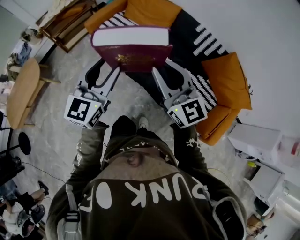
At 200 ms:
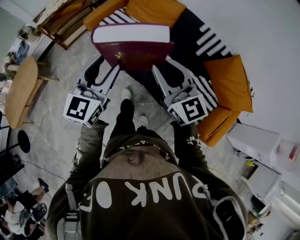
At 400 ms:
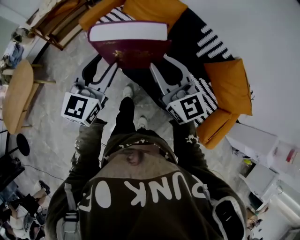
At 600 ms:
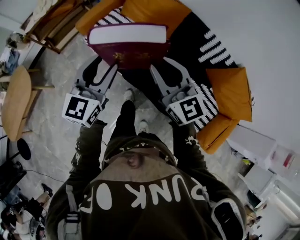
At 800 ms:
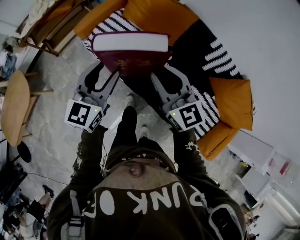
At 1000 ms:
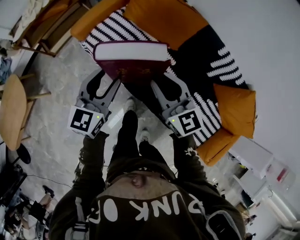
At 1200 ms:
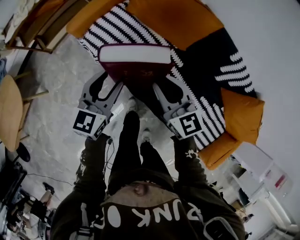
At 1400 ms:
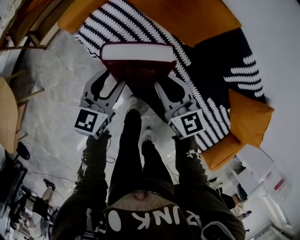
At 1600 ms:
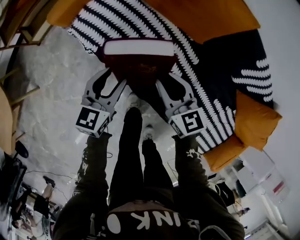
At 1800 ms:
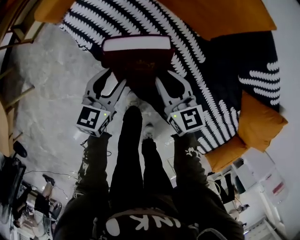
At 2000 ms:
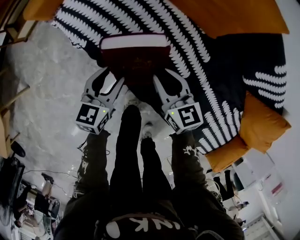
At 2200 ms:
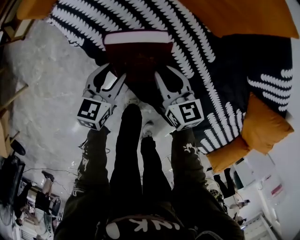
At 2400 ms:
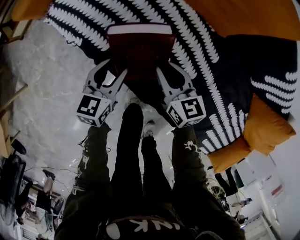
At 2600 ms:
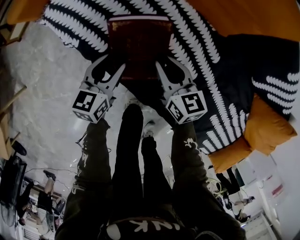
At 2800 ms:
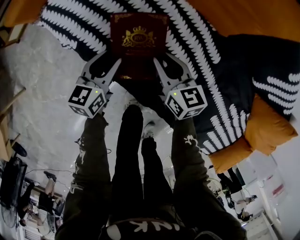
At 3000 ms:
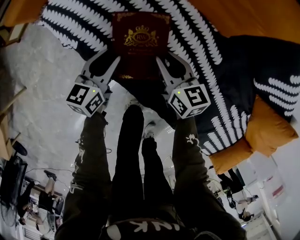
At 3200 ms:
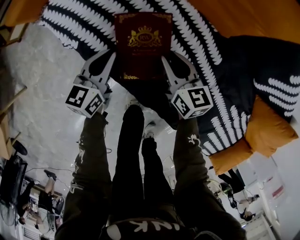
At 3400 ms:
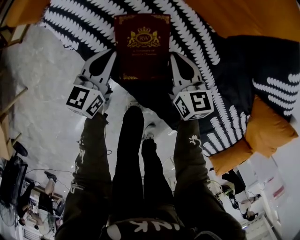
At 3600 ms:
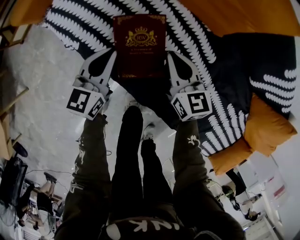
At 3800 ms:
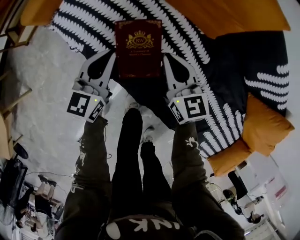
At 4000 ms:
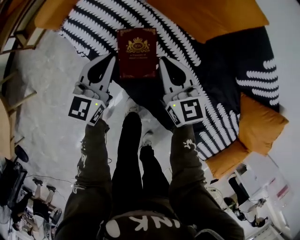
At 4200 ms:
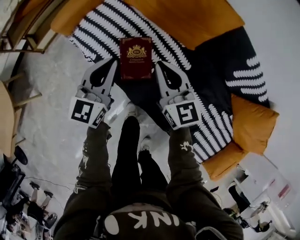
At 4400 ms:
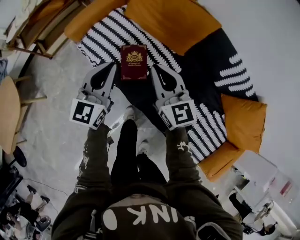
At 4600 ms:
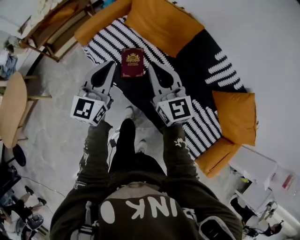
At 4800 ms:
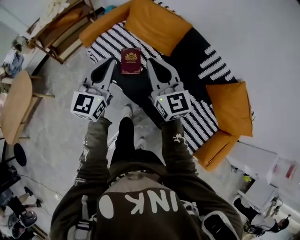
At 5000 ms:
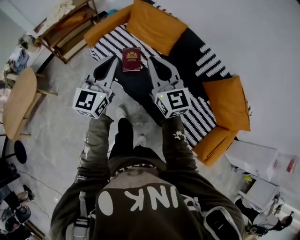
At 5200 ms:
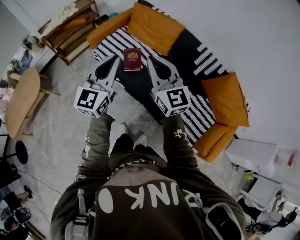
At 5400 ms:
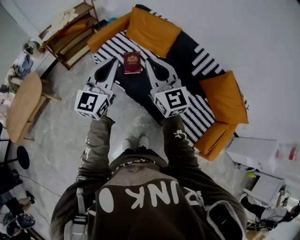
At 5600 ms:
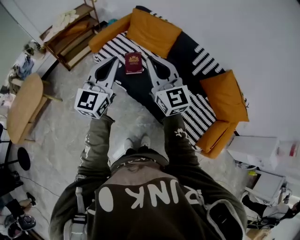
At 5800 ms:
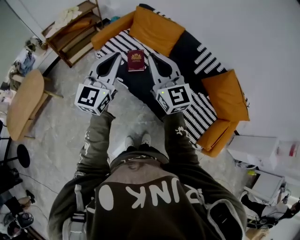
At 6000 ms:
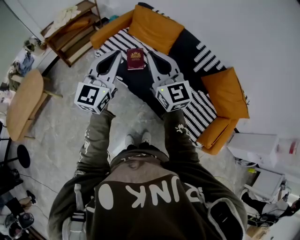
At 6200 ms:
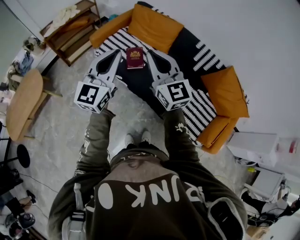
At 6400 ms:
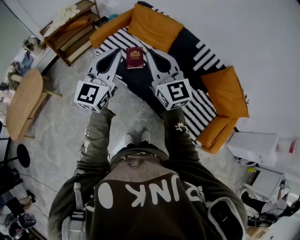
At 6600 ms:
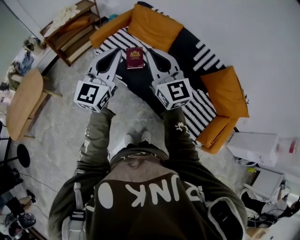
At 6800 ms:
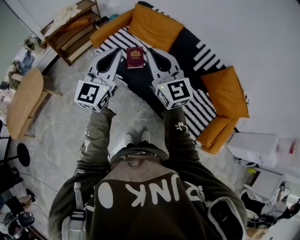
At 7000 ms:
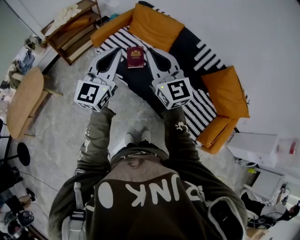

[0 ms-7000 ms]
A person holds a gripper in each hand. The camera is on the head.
0 ms to 1400 ms: The pair of grippers is taken forward, roughly 40 cm. The grippers both shift downward by about 35 cm. The right gripper turns by approximately 30 degrees; the left gripper rotates approximately 30 degrees.
1400 ms to 2800 ms: The two grippers go approximately 30 cm downward. The right gripper swivels roughly 20 degrees.
2800 ms to 4200 ms: The two grippers go roughly 30 cm upward. The left gripper swivels about 30 degrees, and closes, while the right gripper swivels about 30 degrees, and closes its fingers.
4200 ms to 5600 ms: Both grippers move upward and backward, about 60 cm. The right gripper turns by roughly 20 degrees, while the left gripper rotates roughly 20 degrees.
5600 ms to 7000 ms: The grippers move only a little.

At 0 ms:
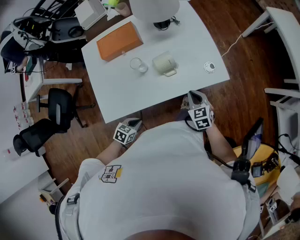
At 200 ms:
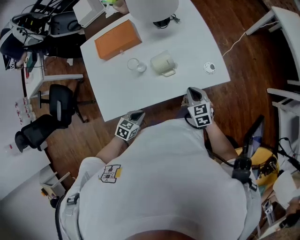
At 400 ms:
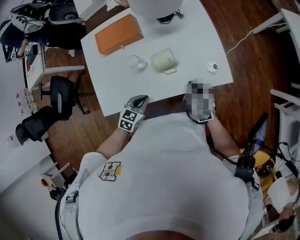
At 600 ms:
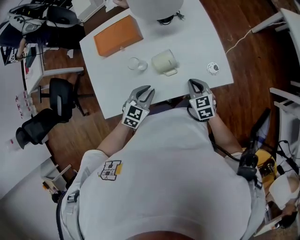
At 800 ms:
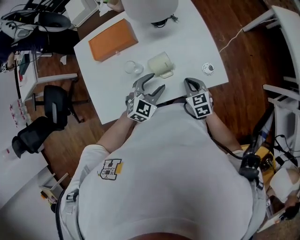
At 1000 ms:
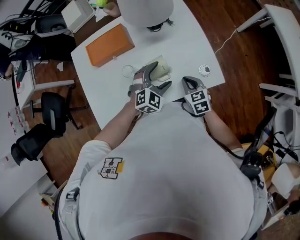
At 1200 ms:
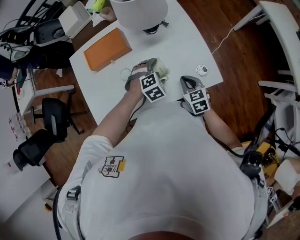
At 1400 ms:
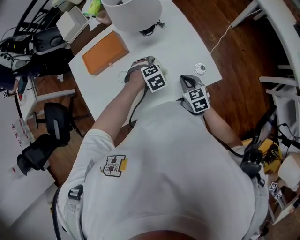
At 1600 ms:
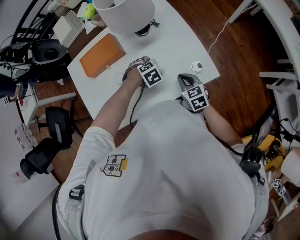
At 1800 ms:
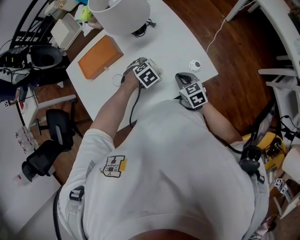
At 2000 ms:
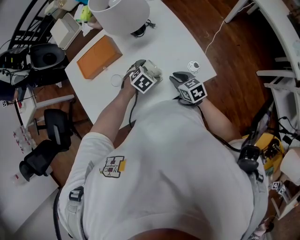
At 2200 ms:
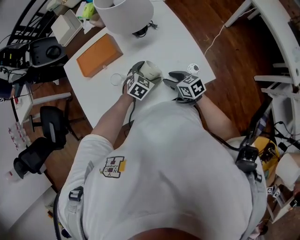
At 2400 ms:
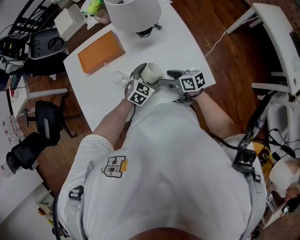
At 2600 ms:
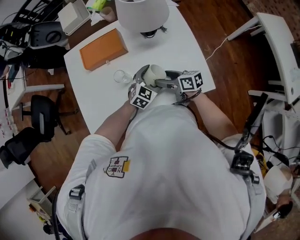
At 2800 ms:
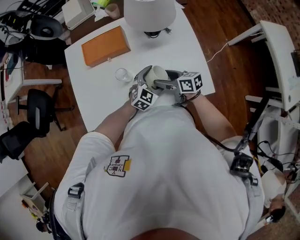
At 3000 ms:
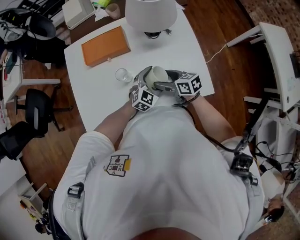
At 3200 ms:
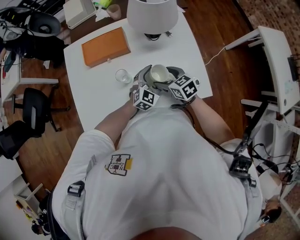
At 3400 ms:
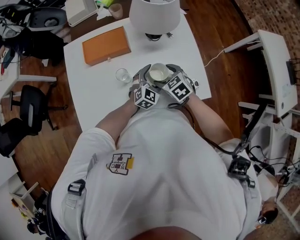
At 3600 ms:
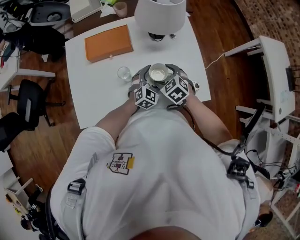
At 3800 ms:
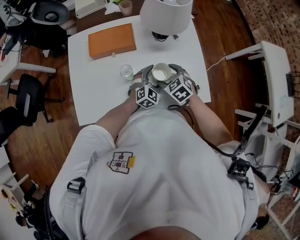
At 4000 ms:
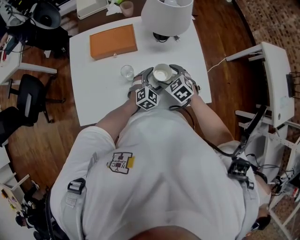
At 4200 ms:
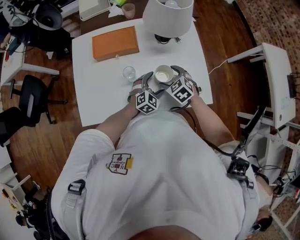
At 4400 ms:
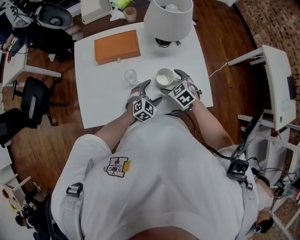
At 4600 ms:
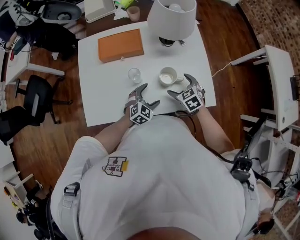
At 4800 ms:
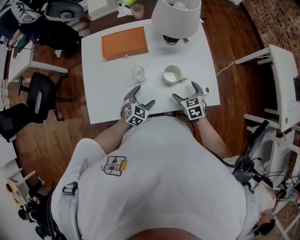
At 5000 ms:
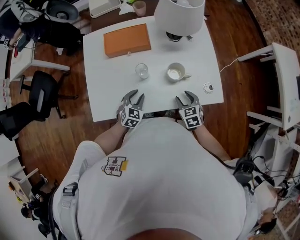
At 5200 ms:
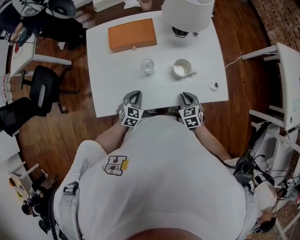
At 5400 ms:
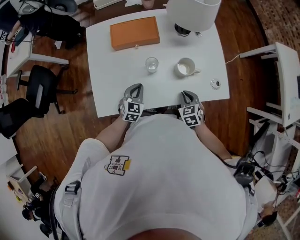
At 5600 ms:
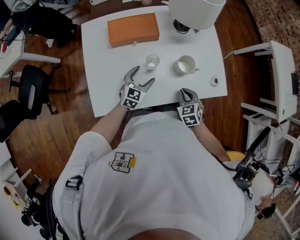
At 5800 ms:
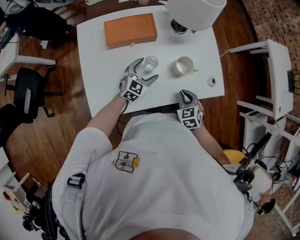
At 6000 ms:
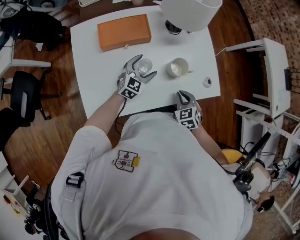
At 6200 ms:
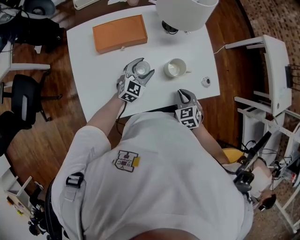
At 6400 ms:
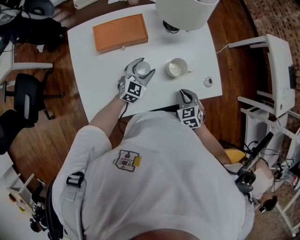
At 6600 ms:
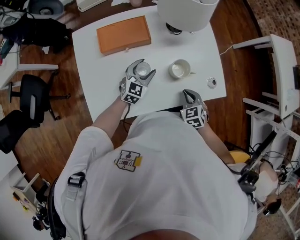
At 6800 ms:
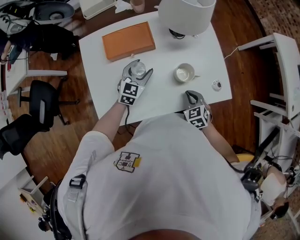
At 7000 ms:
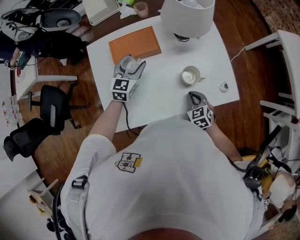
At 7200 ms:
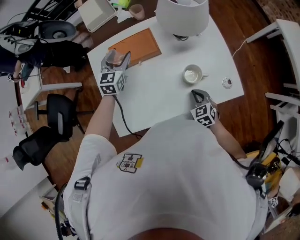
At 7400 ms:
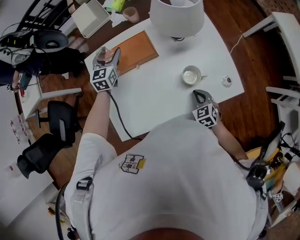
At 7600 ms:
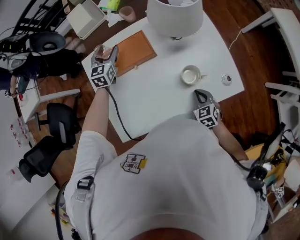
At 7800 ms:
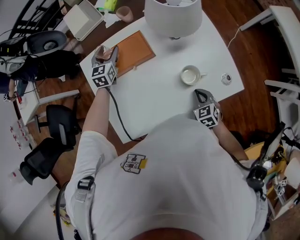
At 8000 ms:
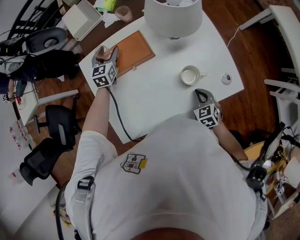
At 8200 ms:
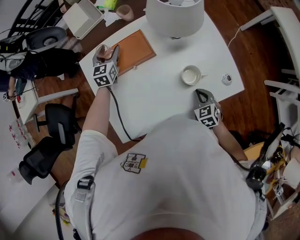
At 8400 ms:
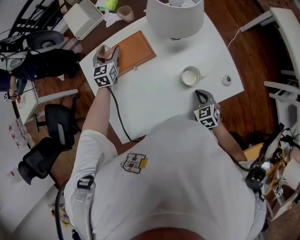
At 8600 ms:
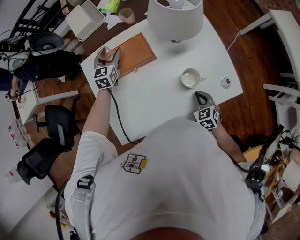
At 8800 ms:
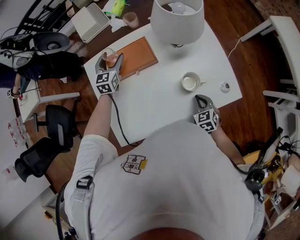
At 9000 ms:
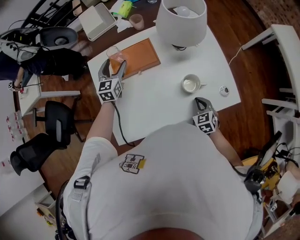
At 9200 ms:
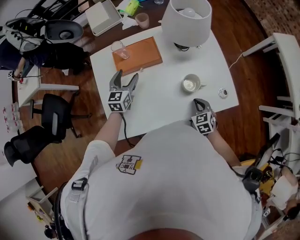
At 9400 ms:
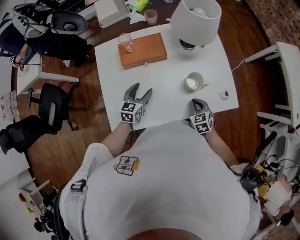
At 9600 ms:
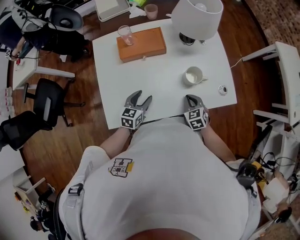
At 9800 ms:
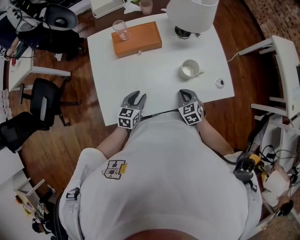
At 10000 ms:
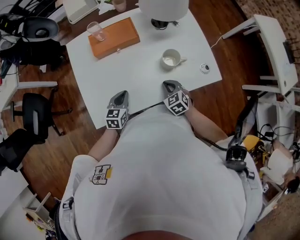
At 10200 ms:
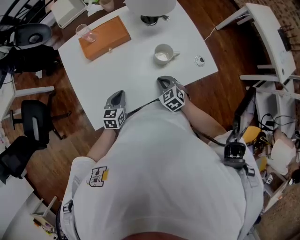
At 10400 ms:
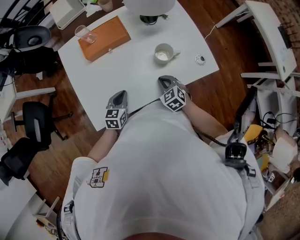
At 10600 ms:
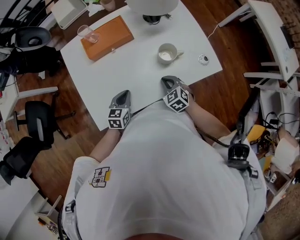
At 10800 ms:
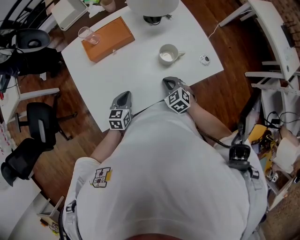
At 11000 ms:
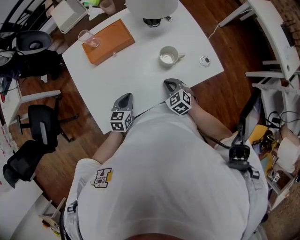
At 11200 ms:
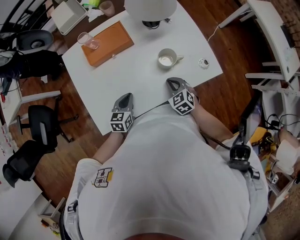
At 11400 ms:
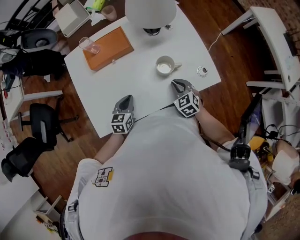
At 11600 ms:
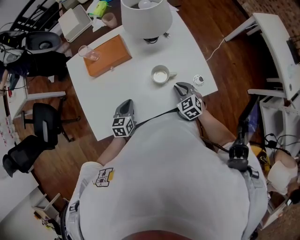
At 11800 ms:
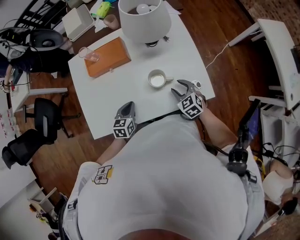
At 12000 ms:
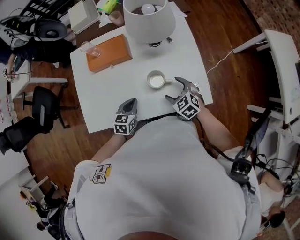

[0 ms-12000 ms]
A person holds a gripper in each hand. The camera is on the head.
0 ms to 1600 ms: The left gripper reaches some 10 cm upward, then returns, rolls clockwise, seen from behind, by about 50 degrees, and opens its fingers. The right gripper ends up roughly 15 cm from where it was.
1600 ms to 3000 ms: The left gripper shifts approximately 5 cm upward, and tilts its fingers roughly 50 degrees upward. Meanwhile the right gripper ends up approximately 10 cm from where it was, swivels about 40 degrees, and opens.
3000 ms to 4400 ms: The right gripper swivels some 50 degrees, while the left gripper goes roughly 5 cm to the left.
4400 ms to 6000 ms: The right gripper travels backward by approximately 10 cm, swivels roughly 20 degrees, and closes. Meanwhile the left gripper moves to the left and forward, some 15 cm, and closes and opens again.
6000 ms to 7600 ms: The left gripper shifts some 30 cm forward, to the left and upward, and swivels roughly 20 degrees.
7600 ms to 9000 ms: The left gripper is displaced backward by about 5 cm.
9000 ms to 10400 ms: The right gripper shifts about 5 cm to the left. Meanwhile the left gripper is displaced backward and downward by approximately 30 cm, turns by about 30 degrees, and closes.
10400 ms to 12000 ms: The right gripper goes approximately 15 cm to the right, forward and upward, and opens its fingers. The left gripper travels to the right by some 10 cm.

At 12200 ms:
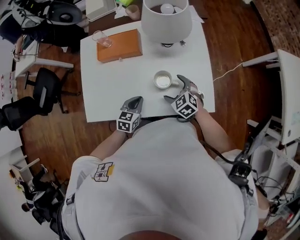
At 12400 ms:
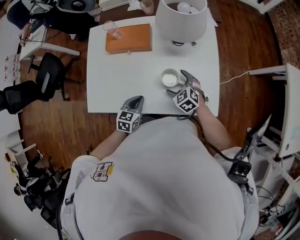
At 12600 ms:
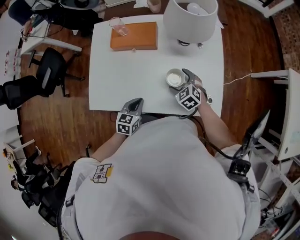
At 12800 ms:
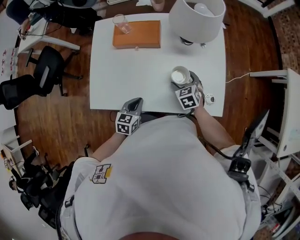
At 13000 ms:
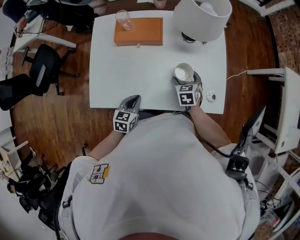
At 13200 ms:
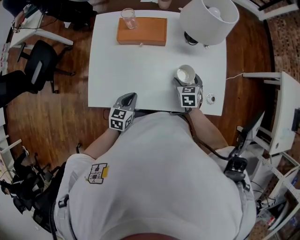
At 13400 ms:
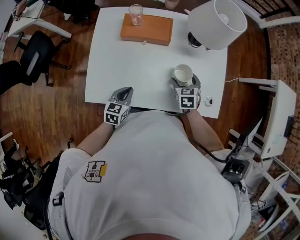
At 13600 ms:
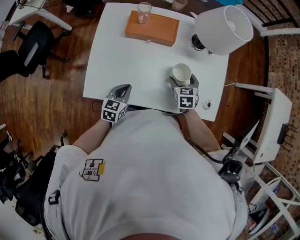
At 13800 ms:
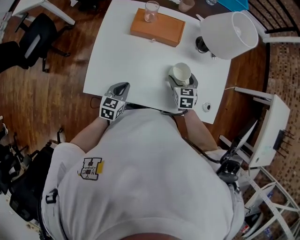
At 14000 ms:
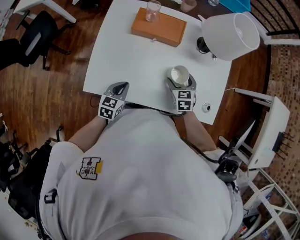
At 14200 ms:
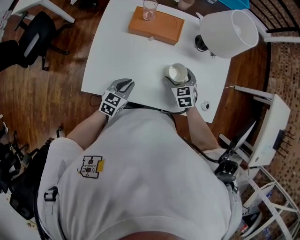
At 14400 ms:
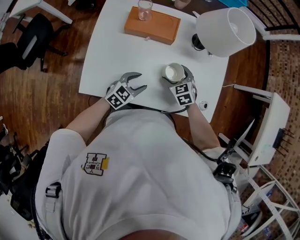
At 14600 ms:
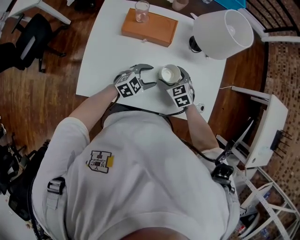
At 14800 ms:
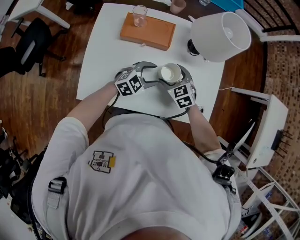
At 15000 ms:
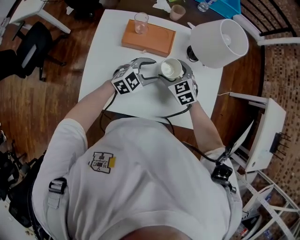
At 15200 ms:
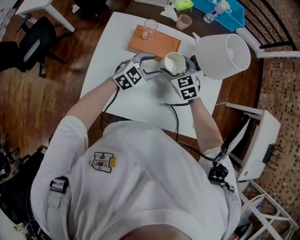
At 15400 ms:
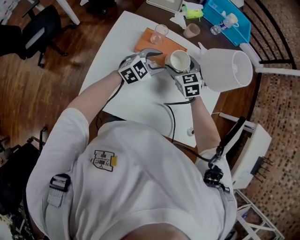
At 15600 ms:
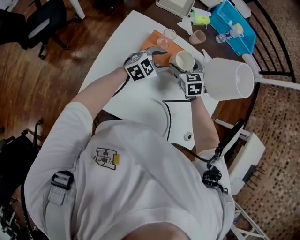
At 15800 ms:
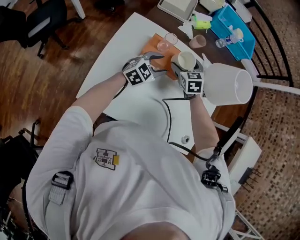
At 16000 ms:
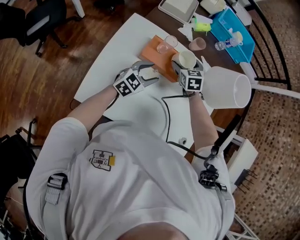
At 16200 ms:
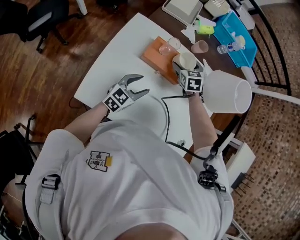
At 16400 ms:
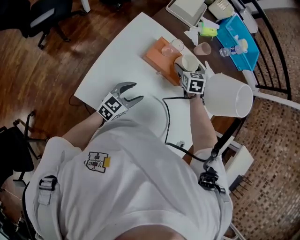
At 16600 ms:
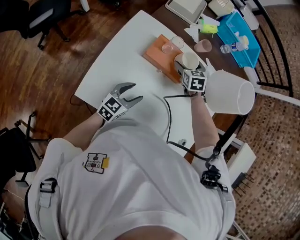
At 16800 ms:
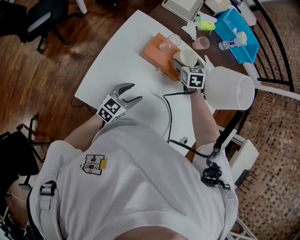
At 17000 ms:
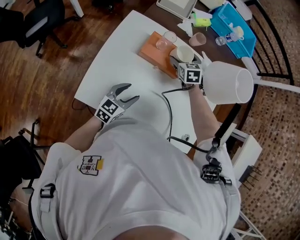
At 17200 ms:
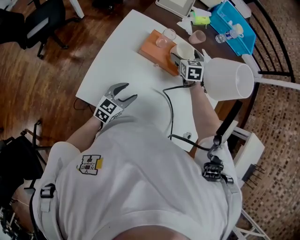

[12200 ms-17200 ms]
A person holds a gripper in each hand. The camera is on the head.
12200 ms to 13800 ms: The left gripper is displaced to the left by about 15 cm, while the right gripper shifts about 10 cm to the left and forward, and turns by some 20 degrees.
13800 ms to 15600 ms: The left gripper heads forward and upward, covering approximately 30 cm, changes its angle by approximately 40 degrees, and opens up. Meanwhile the right gripper shifts roughly 25 cm forward, to the left and upward, and rotates roughly 30 degrees.
15600 ms to 17200 ms: The left gripper is displaced backward by roughly 20 cm, and changes its angle by about 30 degrees, while the right gripper travels forward by roughly 5 cm.
